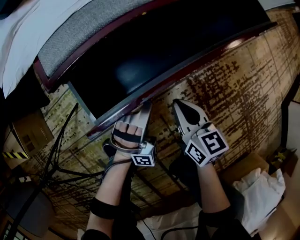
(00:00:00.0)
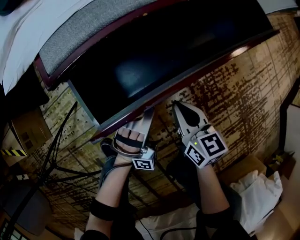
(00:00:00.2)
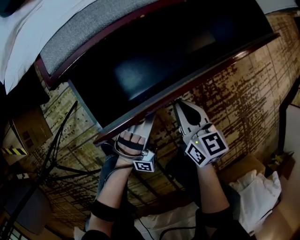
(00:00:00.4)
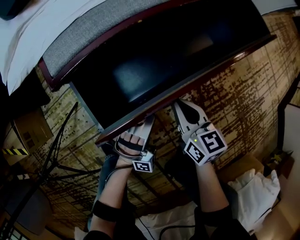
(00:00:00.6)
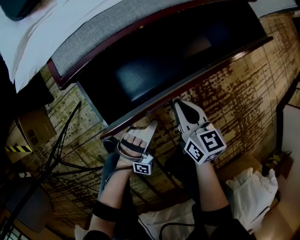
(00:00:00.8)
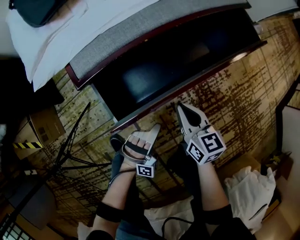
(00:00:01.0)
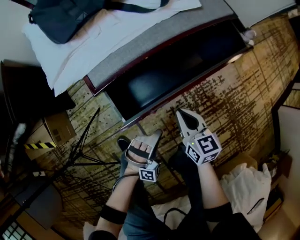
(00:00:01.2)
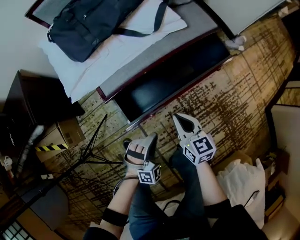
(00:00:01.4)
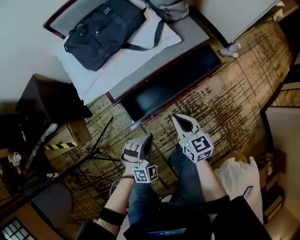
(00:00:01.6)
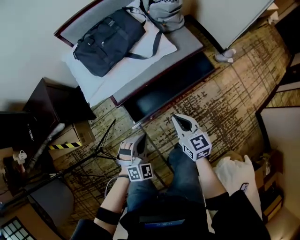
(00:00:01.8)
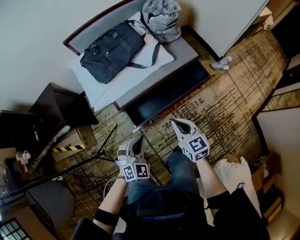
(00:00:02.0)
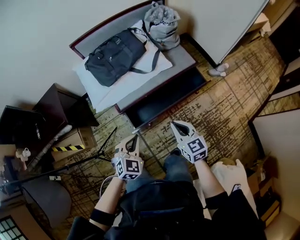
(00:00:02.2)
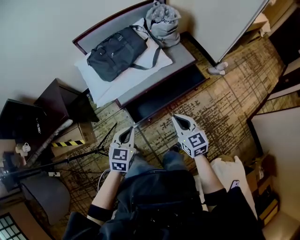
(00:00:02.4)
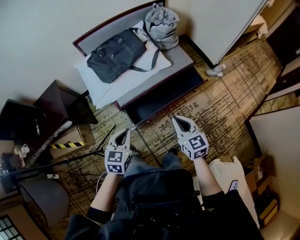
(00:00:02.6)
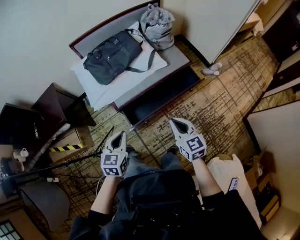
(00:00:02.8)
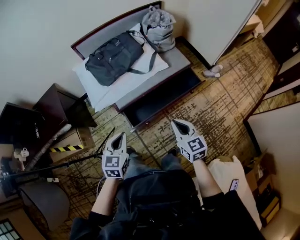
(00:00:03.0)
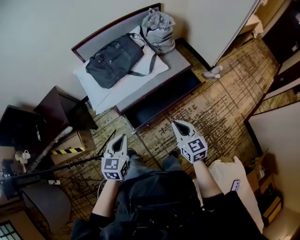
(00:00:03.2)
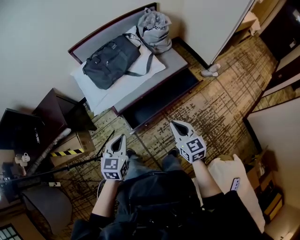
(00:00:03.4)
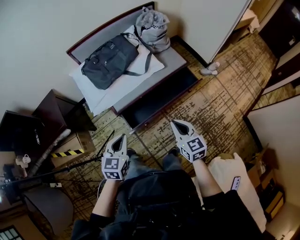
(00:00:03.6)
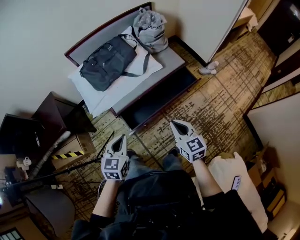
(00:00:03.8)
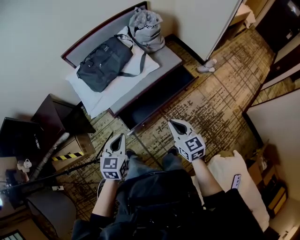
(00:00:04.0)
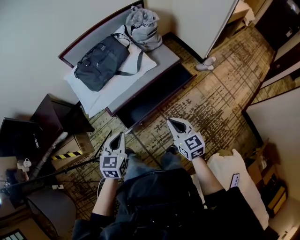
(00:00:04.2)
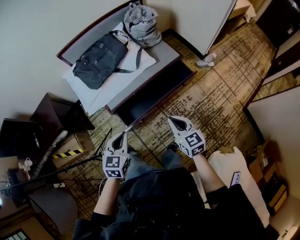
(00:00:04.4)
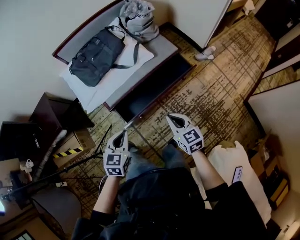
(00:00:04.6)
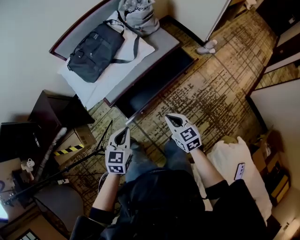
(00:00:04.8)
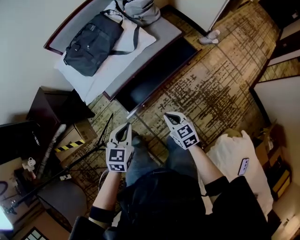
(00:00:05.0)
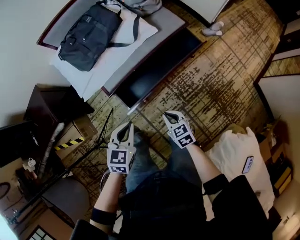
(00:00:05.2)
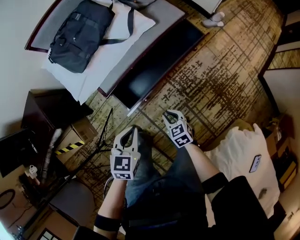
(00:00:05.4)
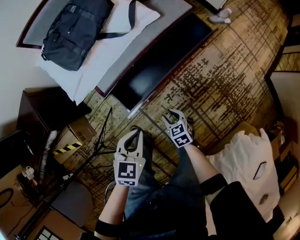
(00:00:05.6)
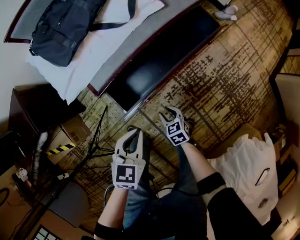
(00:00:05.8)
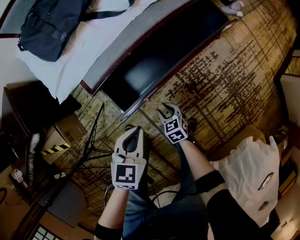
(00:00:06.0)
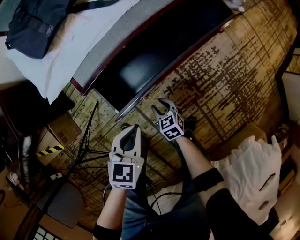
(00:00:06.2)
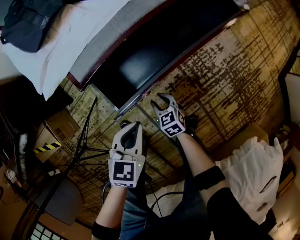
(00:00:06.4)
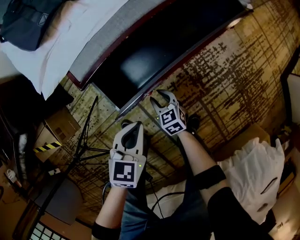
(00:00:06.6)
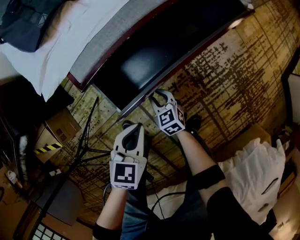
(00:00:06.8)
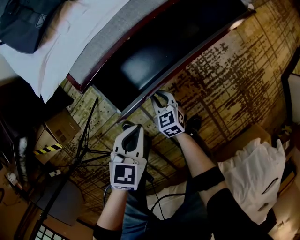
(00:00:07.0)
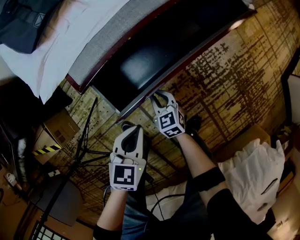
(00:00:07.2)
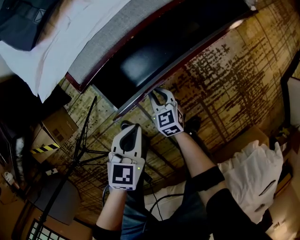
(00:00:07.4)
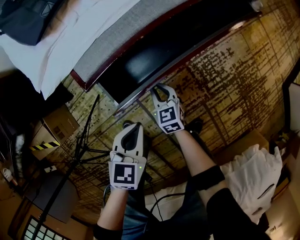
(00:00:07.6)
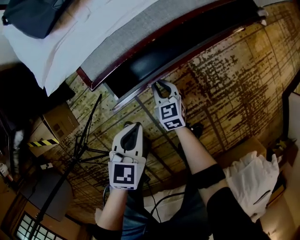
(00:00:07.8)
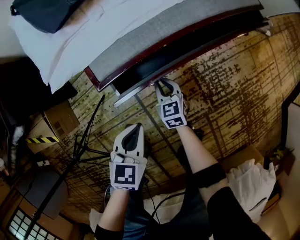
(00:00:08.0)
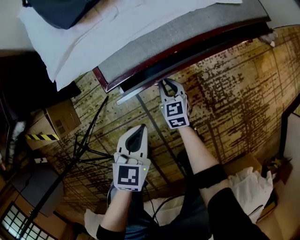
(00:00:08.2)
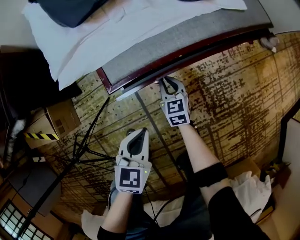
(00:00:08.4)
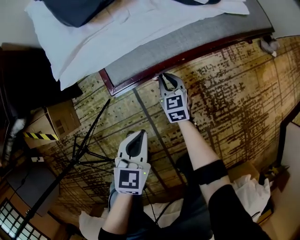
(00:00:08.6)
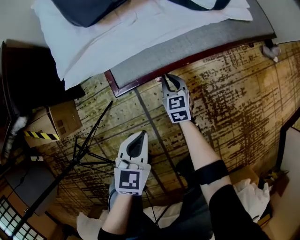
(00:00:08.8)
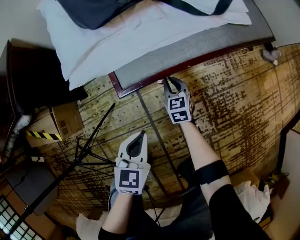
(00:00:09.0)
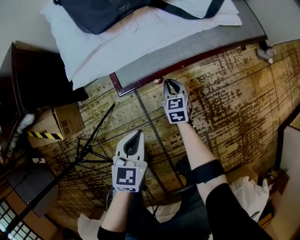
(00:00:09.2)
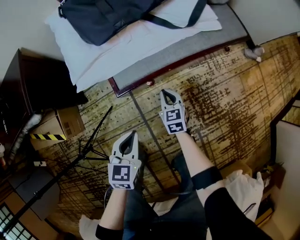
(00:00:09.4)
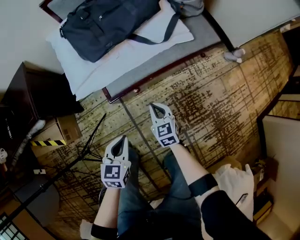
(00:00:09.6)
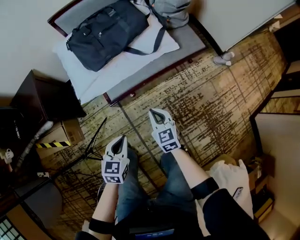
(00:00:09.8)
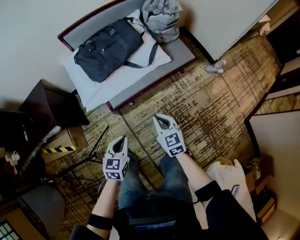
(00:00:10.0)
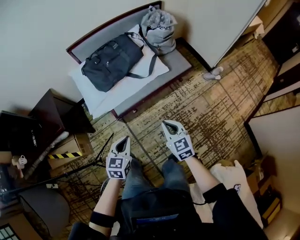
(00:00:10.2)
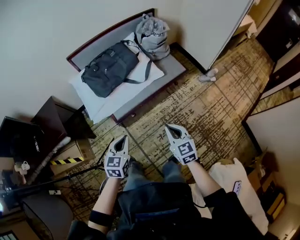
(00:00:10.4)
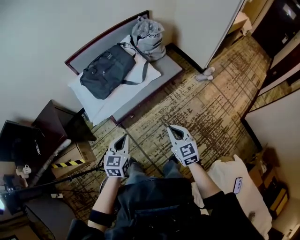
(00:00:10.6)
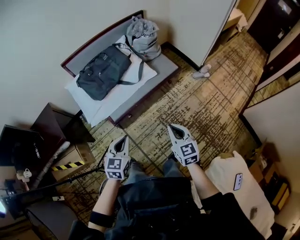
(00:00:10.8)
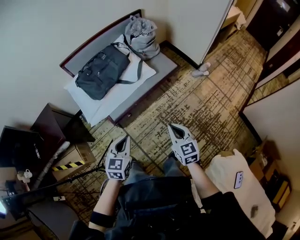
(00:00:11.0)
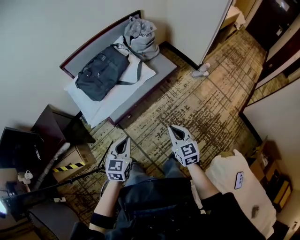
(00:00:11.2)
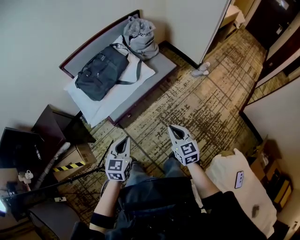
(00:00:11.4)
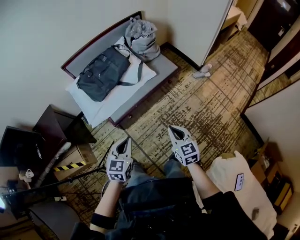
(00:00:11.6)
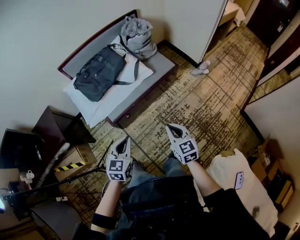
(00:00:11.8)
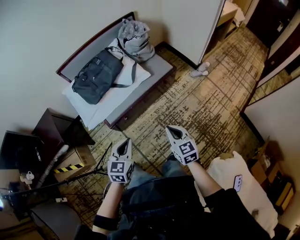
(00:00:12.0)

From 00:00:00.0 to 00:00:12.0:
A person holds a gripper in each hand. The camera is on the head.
From 00:00:00.0 to 00:00:01.6: The grippers both shift upward by approximately 40 cm. The left gripper swivels approximately 30 degrees.
From 00:00:01.6 to 00:00:03.0: The right gripper travels upward by about 20 cm. The left gripper shifts some 25 cm upward and to the left, and rolls counterclockwise, seen from behind, by about 60 degrees.
From 00:00:03.0 to 00:00:04.4: The two grippers go approximately 5 cm to the right.
From 00:00:04.4 to 00:00:06.0: The left gripper travels downward by about 35 cm, while the right gripper heads downward, covering approximately 60 cm, rotates roughly 30 degrees, and opens up.
From 00:00:06.0 to 00:00:07.6: The left gripper shifts approximately 15 cm downward and to the left, while the right gripper travels forward, to the left and downward by approximately 15 cm, and closes up.
From 00:00:07.6 to 00:00:09.0: The left gripper is displaced to the left by approximately 10 cm. Meanwhile the right gripper moves forward and to the left, some 15 cm.
From 00:00:09.0 to 00:00:10.4: The right gripper moves upward and backward, approximately 70 cm, while the left gripper heads upward, covering roughly 40 cm.
From 00:00:10.4 to 00:00:12.0: The grippers both shift to the right by approximately 10 cm.

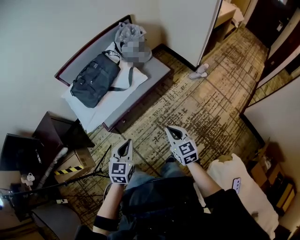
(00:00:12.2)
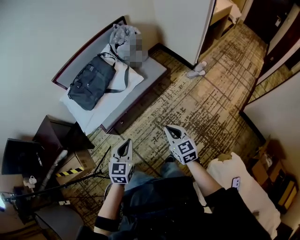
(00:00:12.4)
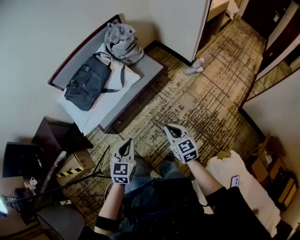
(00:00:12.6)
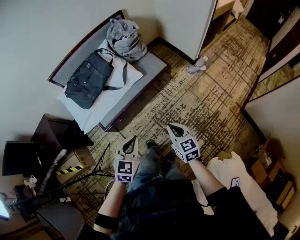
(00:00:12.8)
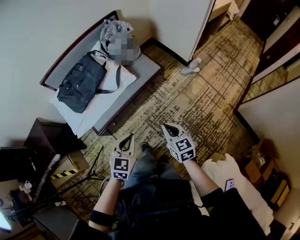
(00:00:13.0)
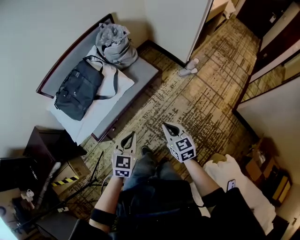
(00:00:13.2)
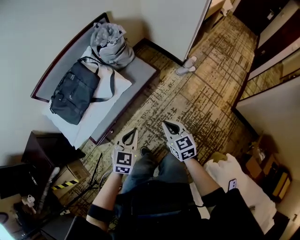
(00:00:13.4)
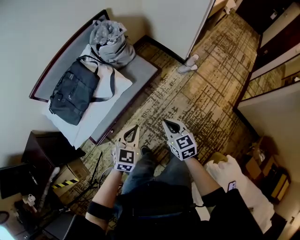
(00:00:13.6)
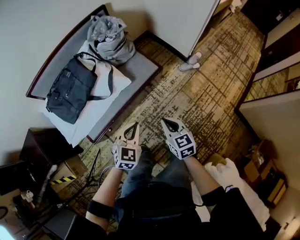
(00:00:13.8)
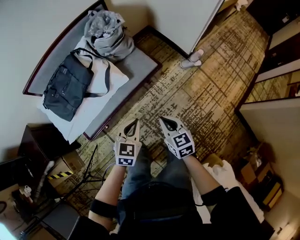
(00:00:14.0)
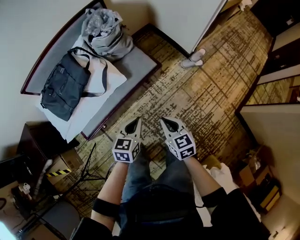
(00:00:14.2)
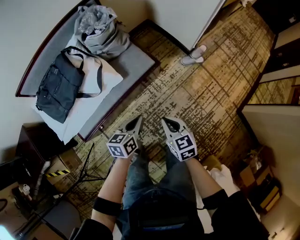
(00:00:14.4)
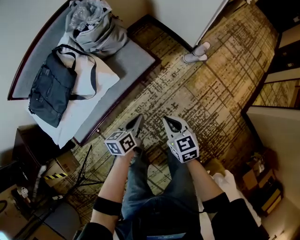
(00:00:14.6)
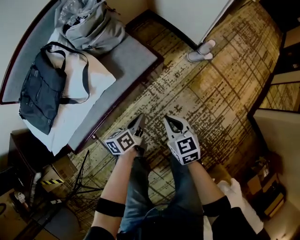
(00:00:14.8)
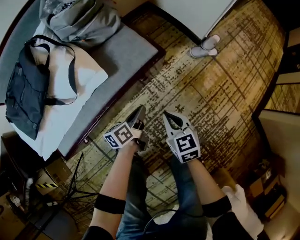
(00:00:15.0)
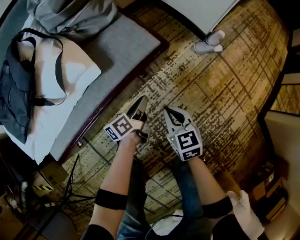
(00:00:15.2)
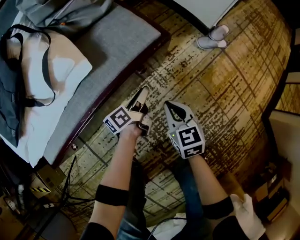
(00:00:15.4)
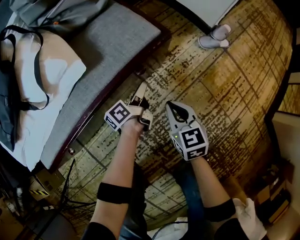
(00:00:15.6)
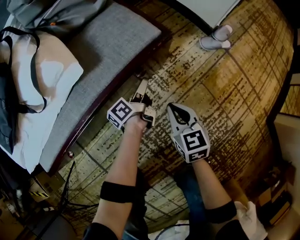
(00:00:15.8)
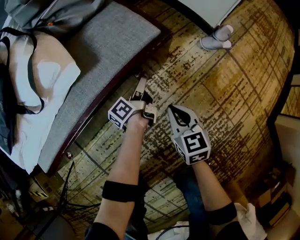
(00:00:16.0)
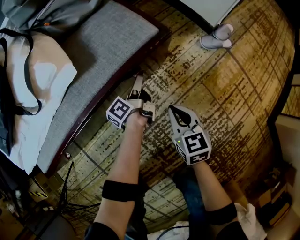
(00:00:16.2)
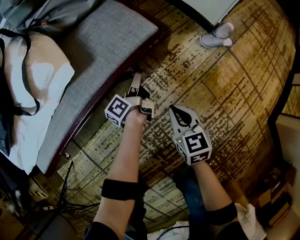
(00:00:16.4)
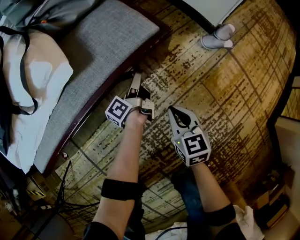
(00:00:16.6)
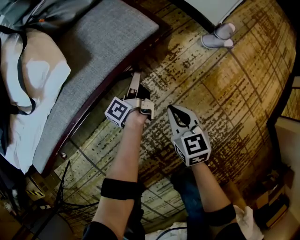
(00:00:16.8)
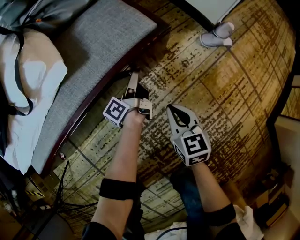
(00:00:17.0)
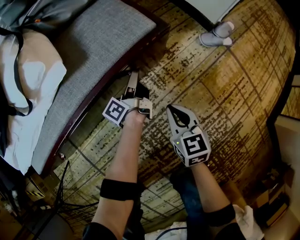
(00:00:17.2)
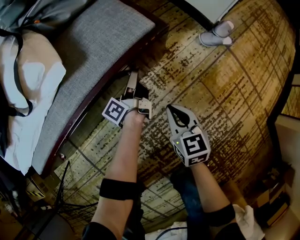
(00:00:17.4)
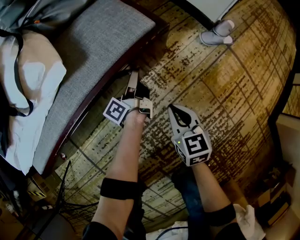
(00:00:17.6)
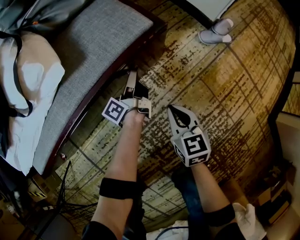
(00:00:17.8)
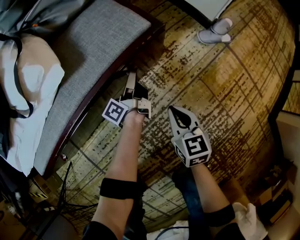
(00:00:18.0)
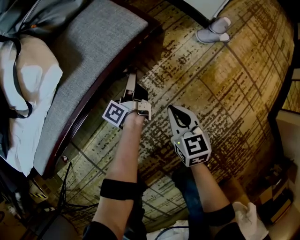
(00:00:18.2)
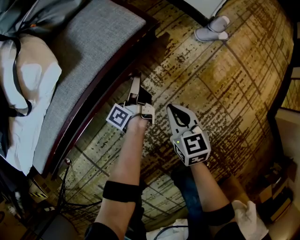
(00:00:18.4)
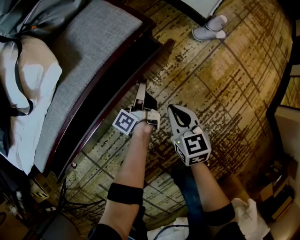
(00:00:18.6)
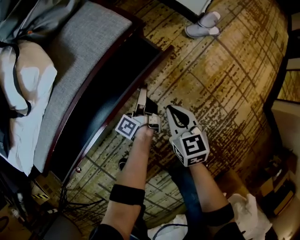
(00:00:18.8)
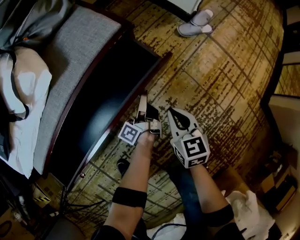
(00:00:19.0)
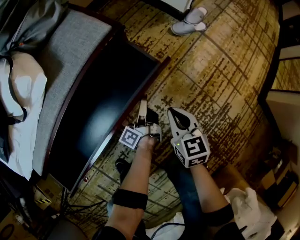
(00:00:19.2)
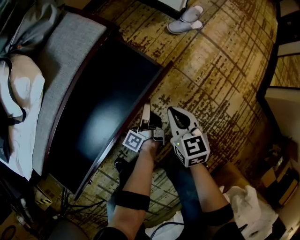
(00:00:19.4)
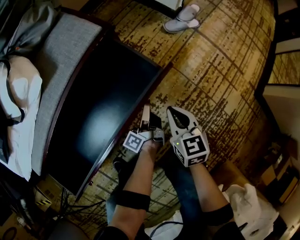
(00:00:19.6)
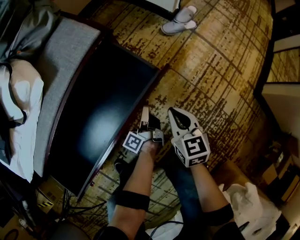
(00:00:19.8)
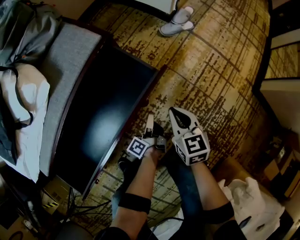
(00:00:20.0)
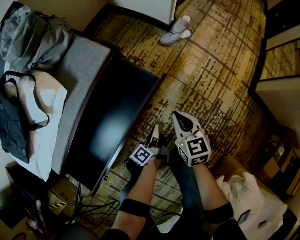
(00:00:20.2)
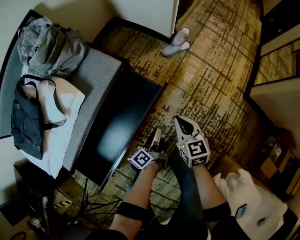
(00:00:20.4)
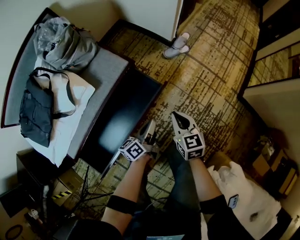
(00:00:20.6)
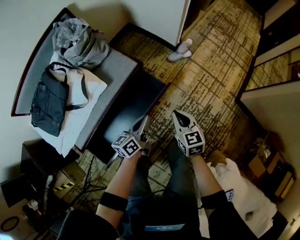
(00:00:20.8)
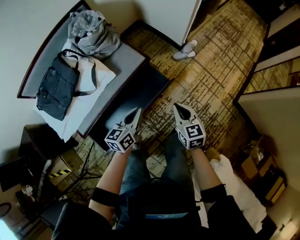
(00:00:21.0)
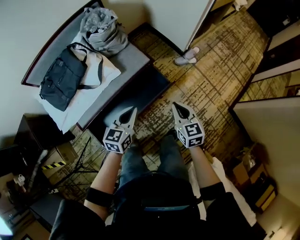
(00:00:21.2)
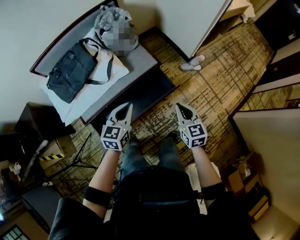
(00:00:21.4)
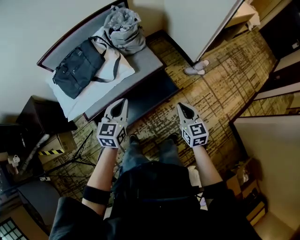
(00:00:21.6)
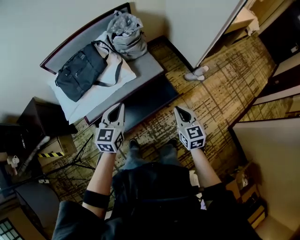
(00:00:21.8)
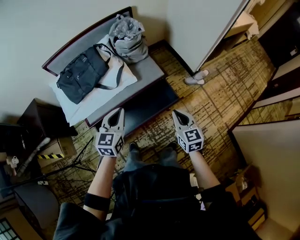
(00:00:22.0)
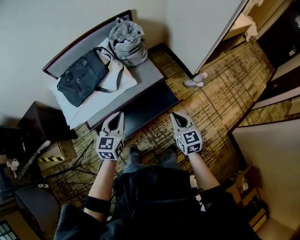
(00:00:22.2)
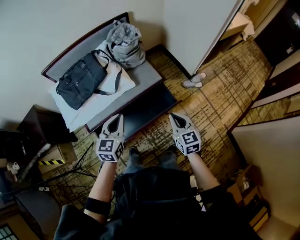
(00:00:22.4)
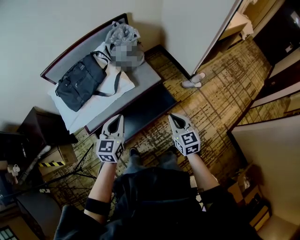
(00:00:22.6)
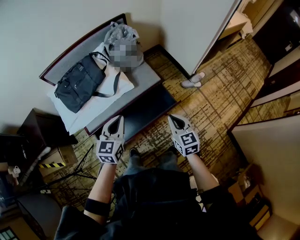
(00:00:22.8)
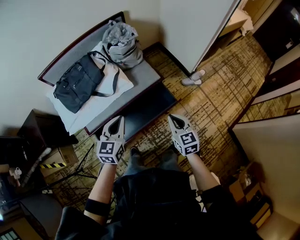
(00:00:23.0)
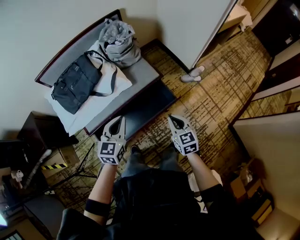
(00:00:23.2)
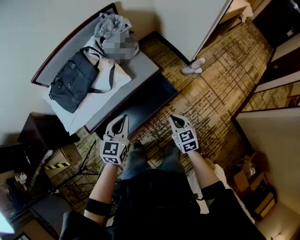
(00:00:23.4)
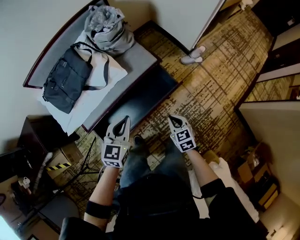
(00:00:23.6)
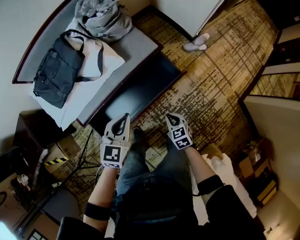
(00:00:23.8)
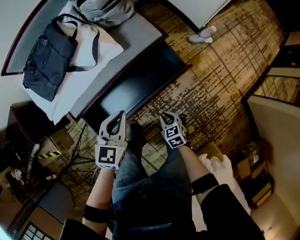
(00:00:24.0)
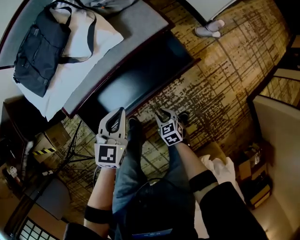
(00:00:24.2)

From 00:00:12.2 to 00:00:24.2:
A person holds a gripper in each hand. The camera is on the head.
From 00:00:12.2 to 00:00:13.8: The right gripper travels forward by some 20 cm; the left gripper moves forward and to the right, approximately 30 cm, and turns by approximately 20 degrees.
From 00:00:13.8 to 00:00:15.2: The two grippers go approximately 50 cm downward and forward. The left gripper twists some 80 degrees counterclockwise, seen from behind.
From 00:00:15.2 to 00:00:16.6: The left gripper shifts some 15 cm downward and forward, rotates some 30 degrees, and opens. The right gripper travels downward by approximately 10 cm.
From 00:00:16.6 to 00:00:18.2: The left gripper closes up.
From 00:00:18.2 to 00:00:19.8: The left gripper heads backward and to the right, covering some 25 cm. The right gripper goes some 15 cm to the right, backward and upward.
From 00:00:19.8 to 00:00:21.2: Both grippers travel together upward, about 50 cm. The left gripper rolls clockwise, seen from behind, by about 80 degrees.
From 00:00:21.2 to 00:00:22.6: The left gripper heads to the left and upward, covering some 15 cm, while the right gripper heads to the left and upward, covering roughly 10 cm.
From 00:00:22.6 to 00:00:24.2: The left gripper is displaced downward by roughly 30 cm; the right gripper moves downward, approximately 50 cm, changes its angle by some 30 degrees, and opens up.
